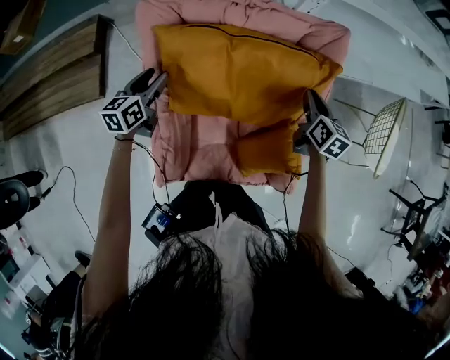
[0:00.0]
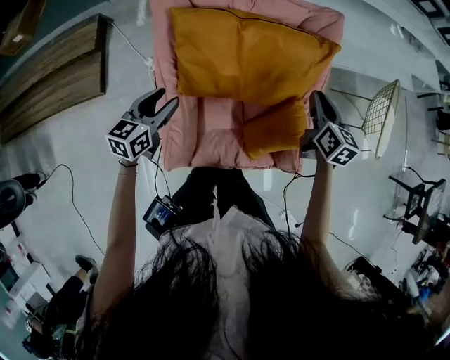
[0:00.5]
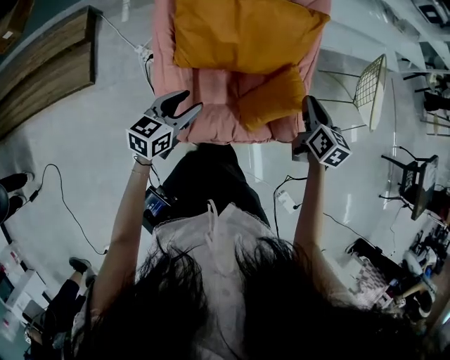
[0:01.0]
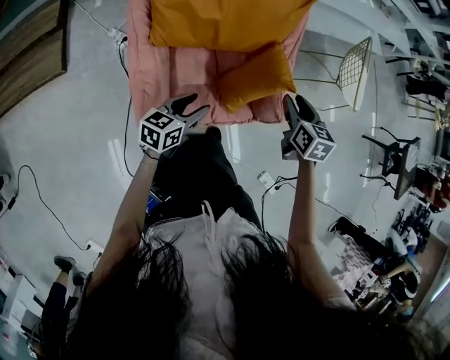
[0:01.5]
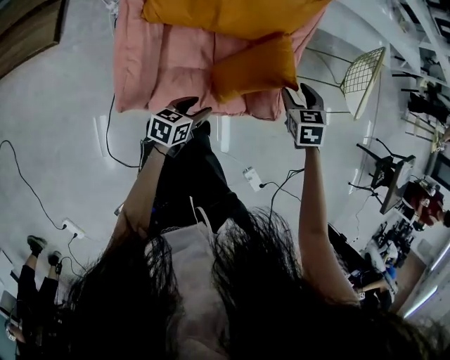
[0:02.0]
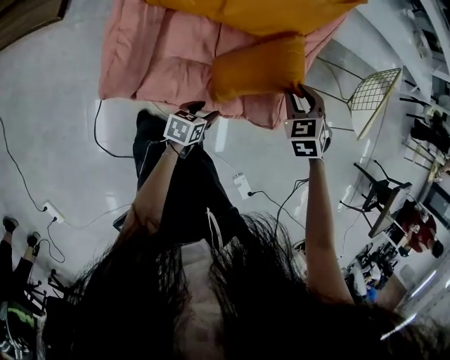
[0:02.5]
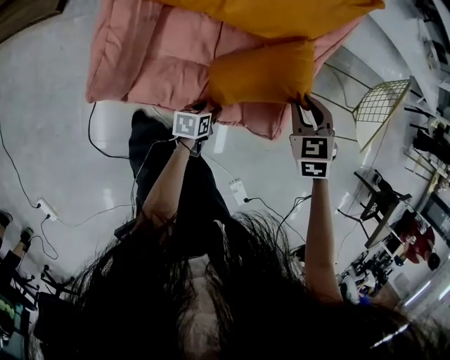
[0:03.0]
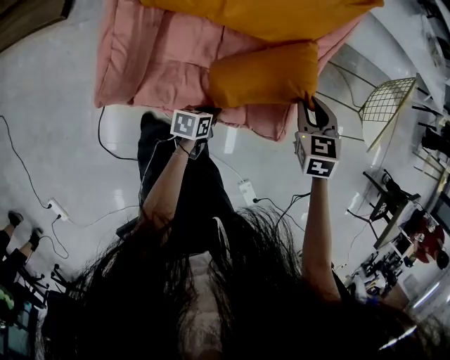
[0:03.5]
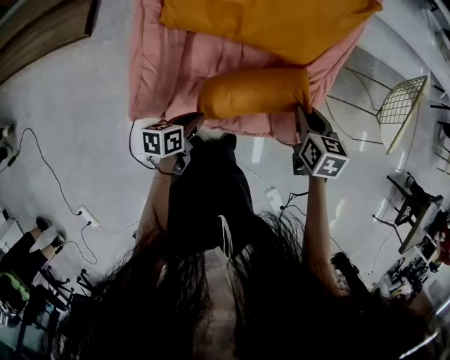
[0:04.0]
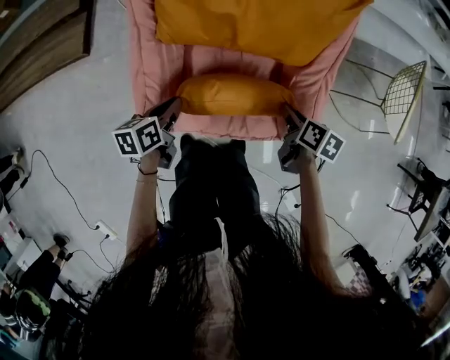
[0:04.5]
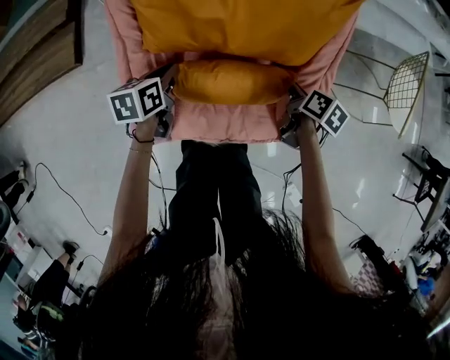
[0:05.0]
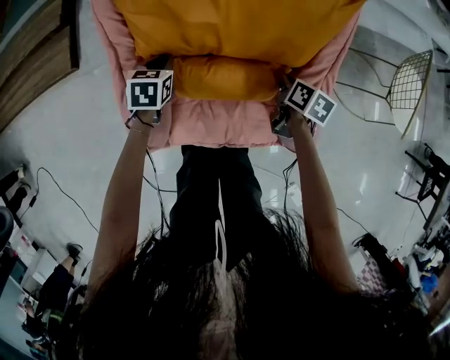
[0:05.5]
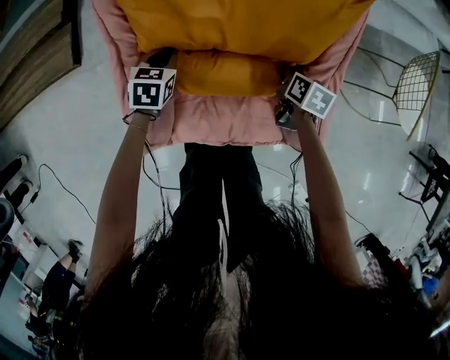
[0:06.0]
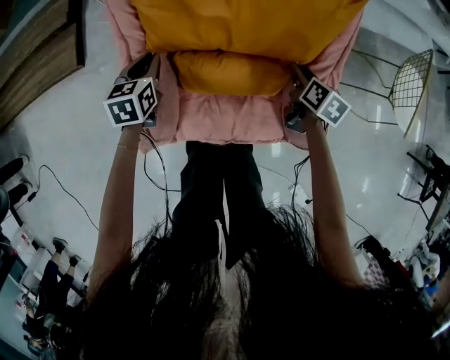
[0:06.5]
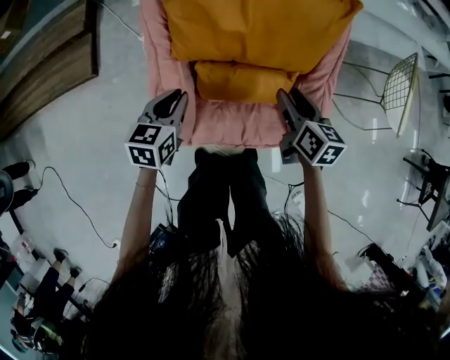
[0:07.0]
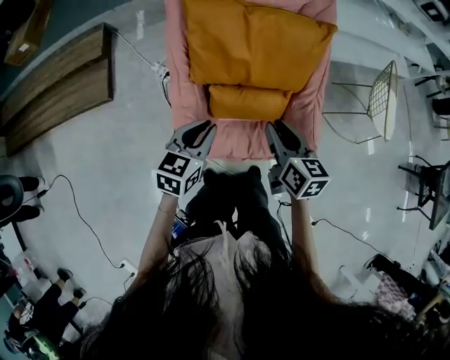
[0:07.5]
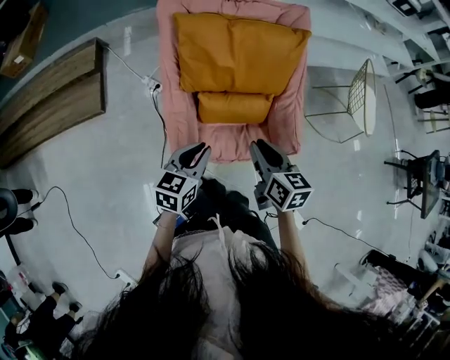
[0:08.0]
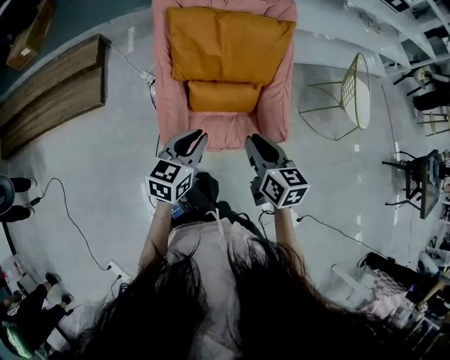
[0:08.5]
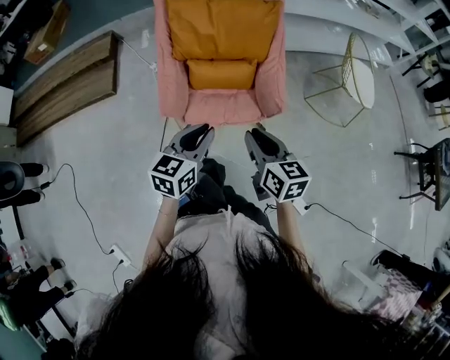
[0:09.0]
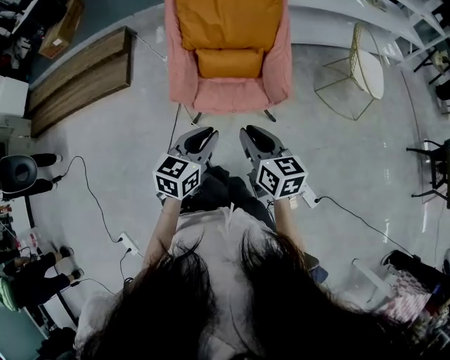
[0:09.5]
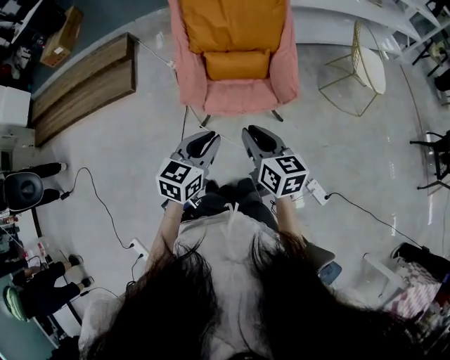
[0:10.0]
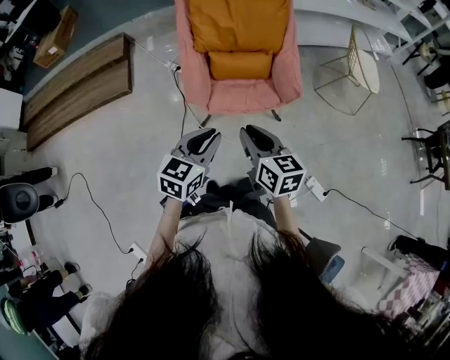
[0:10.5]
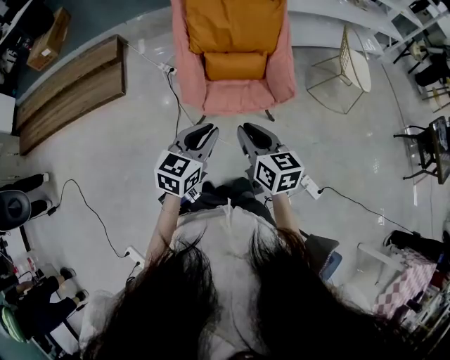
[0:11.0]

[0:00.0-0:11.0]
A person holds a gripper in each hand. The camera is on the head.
0:00.0 to 0:02.0: The right gripper goes some 25 cm backward and to the right, rolls counterclockwise, seen from behind, by some 40 degrees, and opens up, while the left gripper moves to the right, backward and downward, approximately 50 cm, and swivels some 30 degrees.
0:02.0 to 0:03.5: The left gripper is displaced downward and to the right by approximately 15 cm, turns by roughly 20 degrees, and closes up; the right gripper closes.
0:03.5 to 0:05.5: The right gripper is displaced downward, to the left and forward by roughly 20 cm, and rolls clockwise, seen from behind, by roughly 60 degrees, while the left gripper travels to the left, forward and upward by approximately 40 cm, and rotates about 40 degrees.
0:05.5 to 0:07.5: The left gripper heads upward and backward, covering roughly 35 cm, and changes its angle by approximately 30 degrees, while the right gripper goes about 40 cm upward, to the left and backward, and changes its angle by about 30 degrees.
0:07.5 to 0:09.0: The grippers both shift backward and to the right by approximately 30 cm.
0:09.0 to 0:11.0: The left gripper heads backward and to the left, covering some 15 cm. Meanwhile the right gripper goes approximately 15 cm to the left and backward.

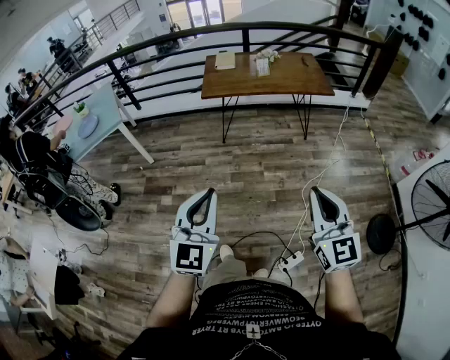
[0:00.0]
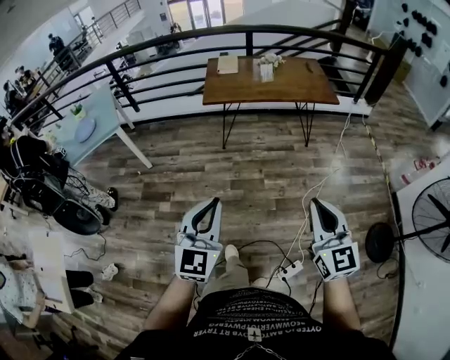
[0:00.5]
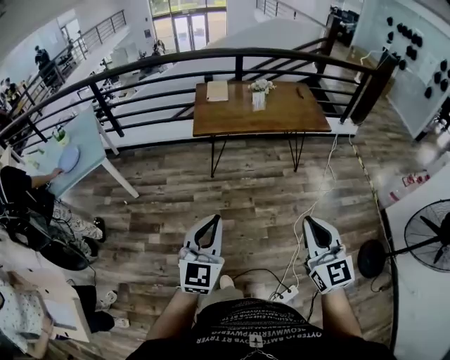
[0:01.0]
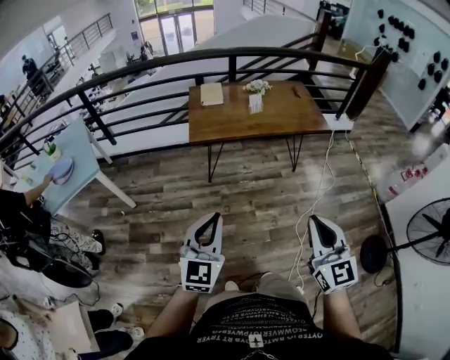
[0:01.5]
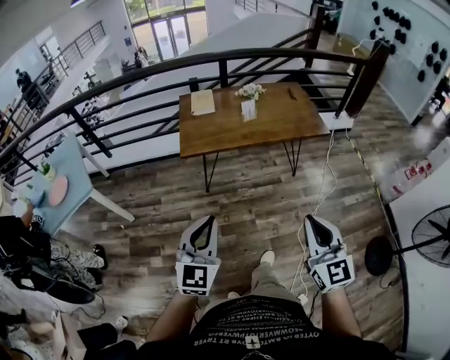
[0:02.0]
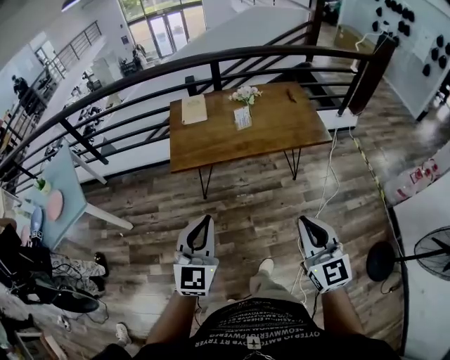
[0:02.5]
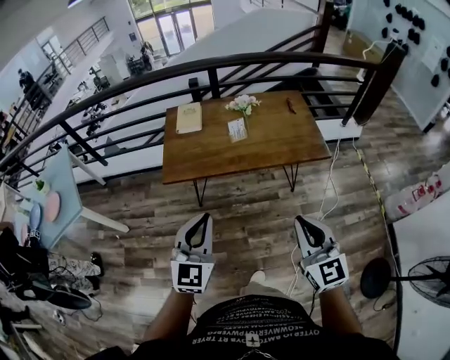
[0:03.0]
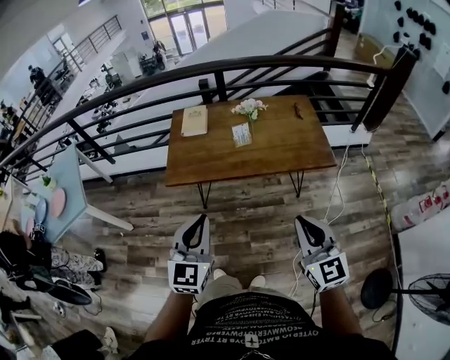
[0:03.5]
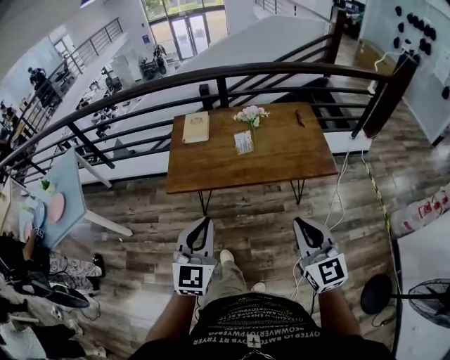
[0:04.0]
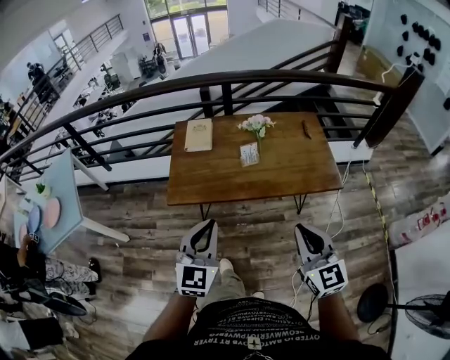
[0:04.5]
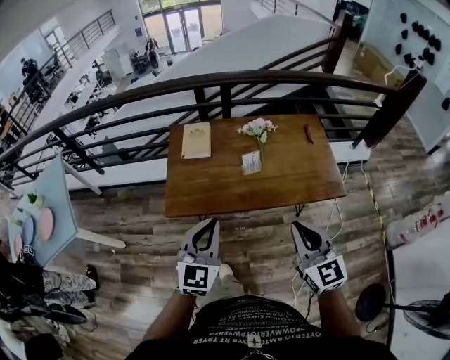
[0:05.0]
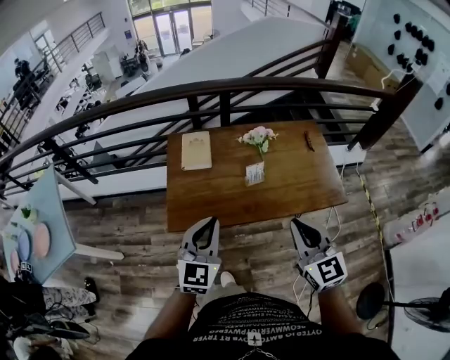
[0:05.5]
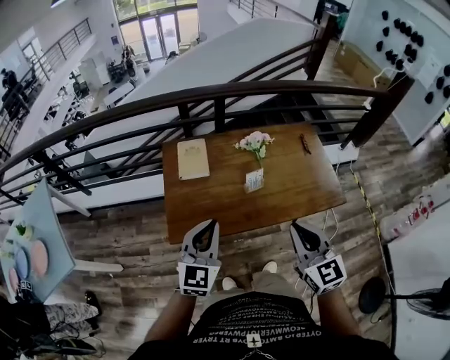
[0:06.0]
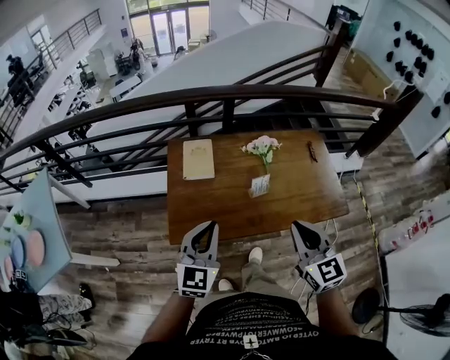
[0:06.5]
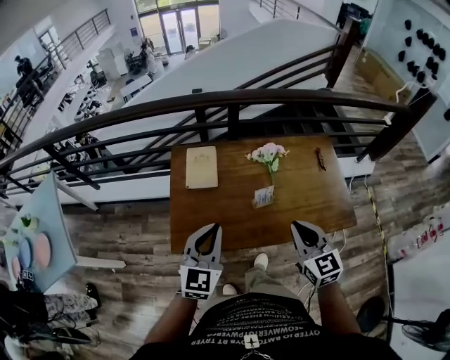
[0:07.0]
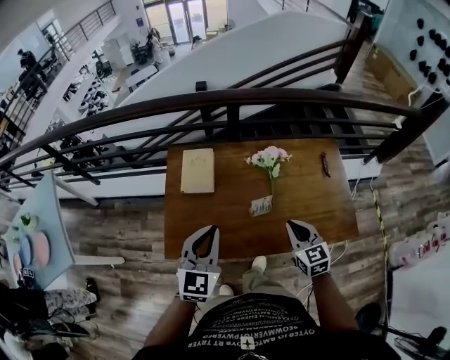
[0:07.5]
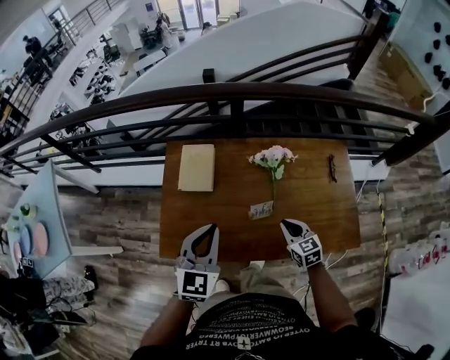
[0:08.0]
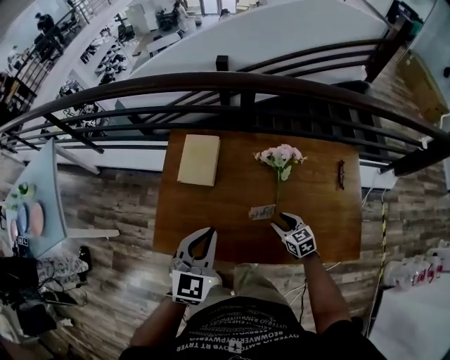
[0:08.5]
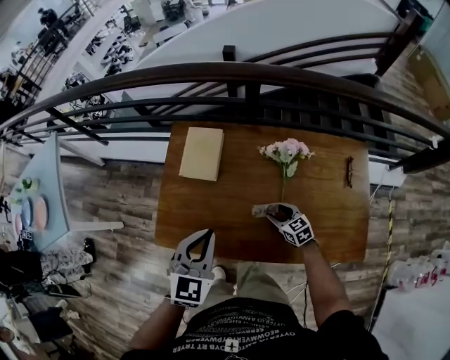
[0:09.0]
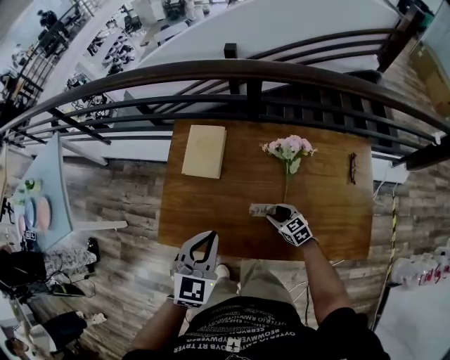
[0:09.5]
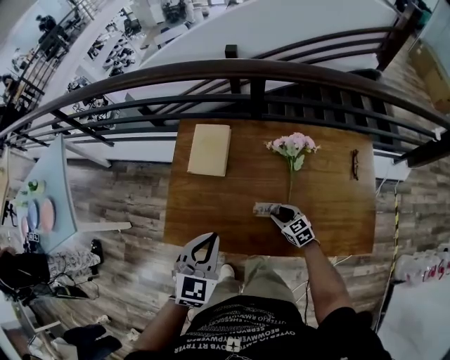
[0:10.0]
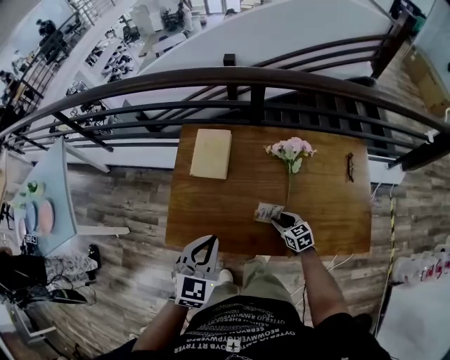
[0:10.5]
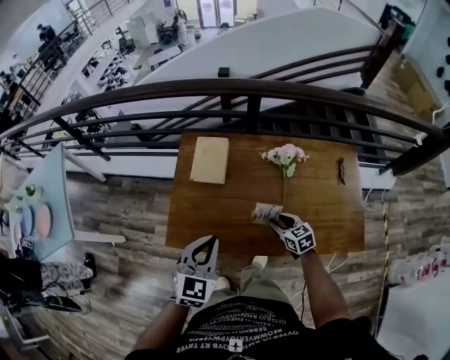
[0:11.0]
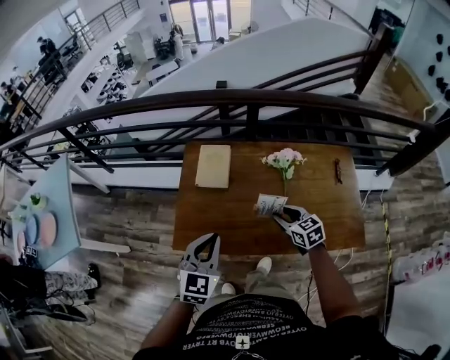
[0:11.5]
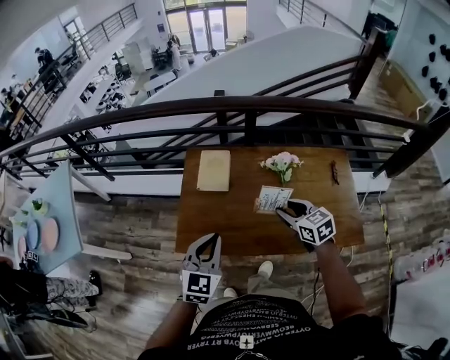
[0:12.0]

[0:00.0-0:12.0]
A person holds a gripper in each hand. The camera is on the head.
0:00.0 to 0:02.0: The grippers both shift forward by about 30 cm.
0:02.0 to 0:04.0: Both grippers move forward and to the right, about 30 cm.
0:04.0 to 0:06.0: The left gripper shifts about 25 cm forward, while the right gripper moves forward and to the left, about 25 cm.
0:06.0 to 0:08.0: The right gripper shifts approximately 35 cm downward and forward, and changes its angle by roughly 30 degrees, while the left gripper is displaced forward by approximately 15 cm.
0:08.0 to 0:10.0: The right gripper heads downward, covering about 15 cm, and opens; the left gripper heads downward, covering roughly 5 cm.
0:10.0 to 0:12.0: The left gripper goes roughly 10 cm upward and to the left; the right gripper is displaced upward by about 30 cm.

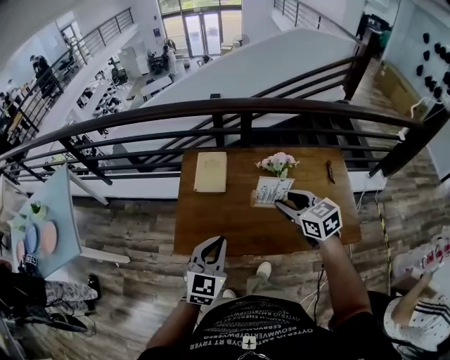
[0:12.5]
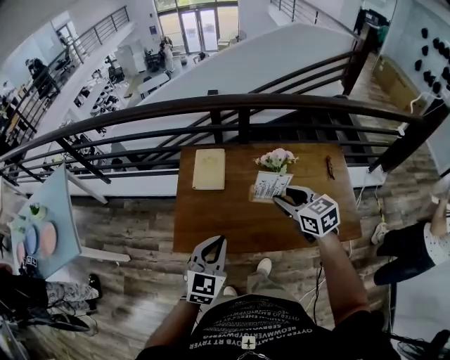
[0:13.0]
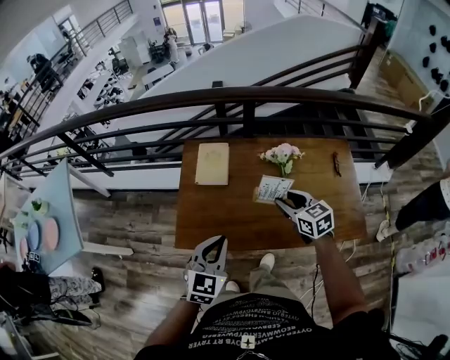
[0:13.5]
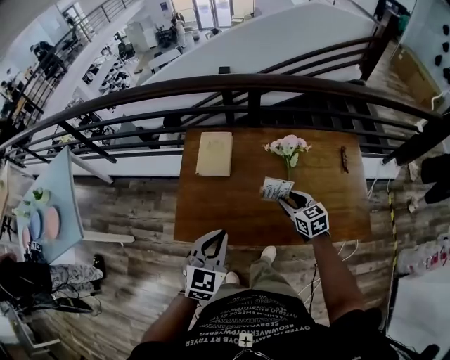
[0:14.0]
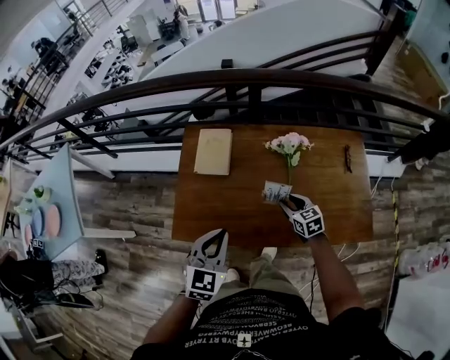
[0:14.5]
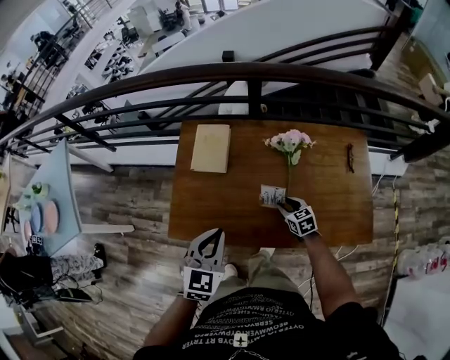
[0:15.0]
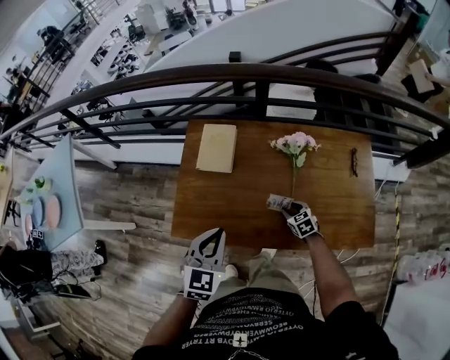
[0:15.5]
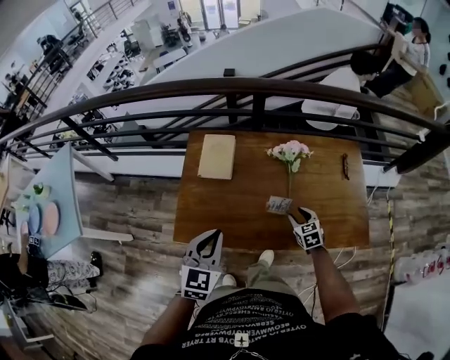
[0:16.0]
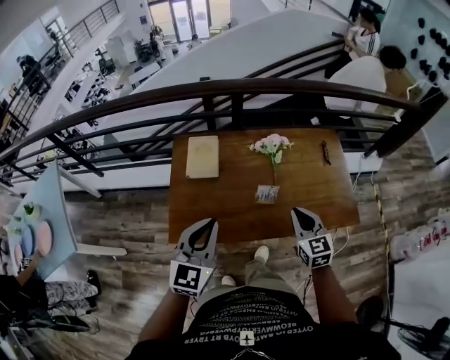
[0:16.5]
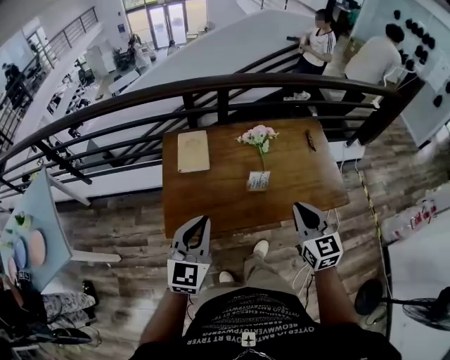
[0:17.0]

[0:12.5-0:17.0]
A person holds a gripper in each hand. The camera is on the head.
0:12.5 to 0:14.5: The left gripper ends up about 5 cm from where it was, while the right gripper goes some 25 cm downward.
0:14.5 to 0:17.0: The right gripper goes some 30 cm upward and backward, turns by some 30 degrees, and closes up. Meanwhile the left gripper moves upward, backward and to the left, some 10 cm.
